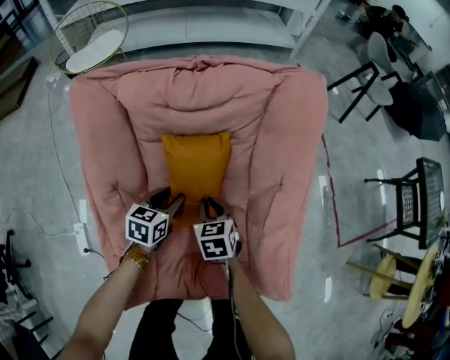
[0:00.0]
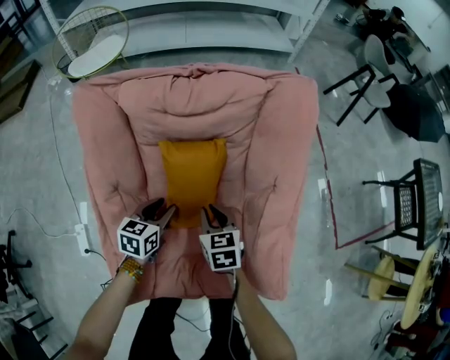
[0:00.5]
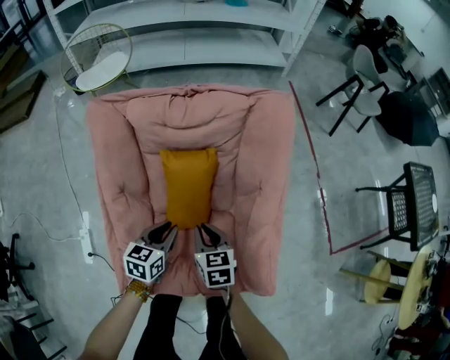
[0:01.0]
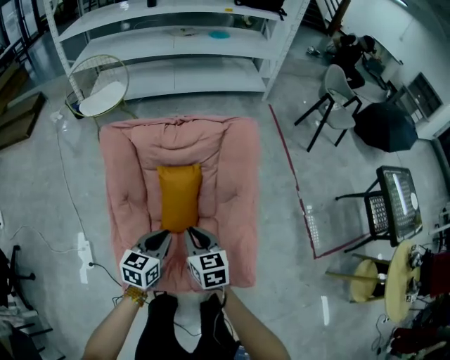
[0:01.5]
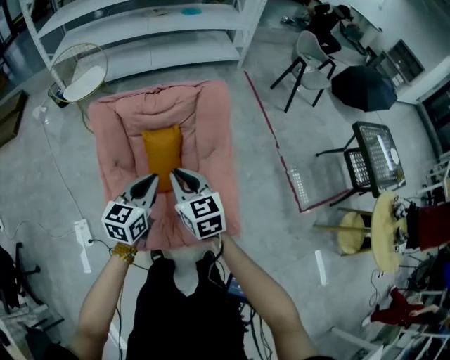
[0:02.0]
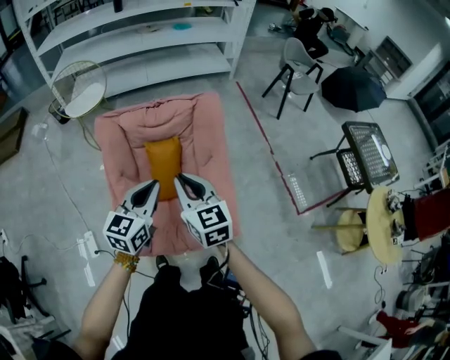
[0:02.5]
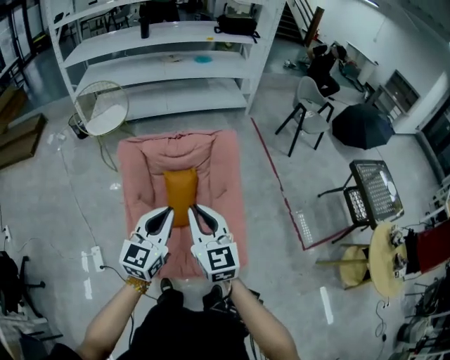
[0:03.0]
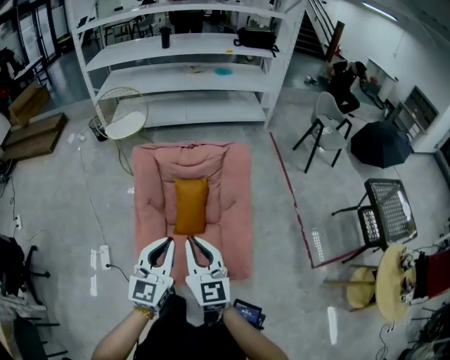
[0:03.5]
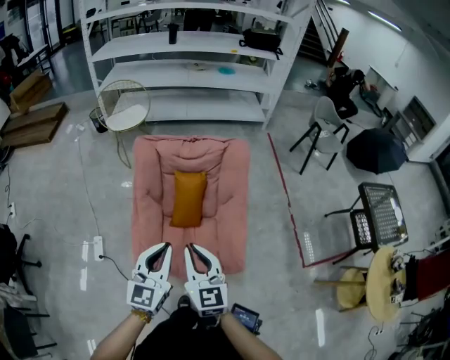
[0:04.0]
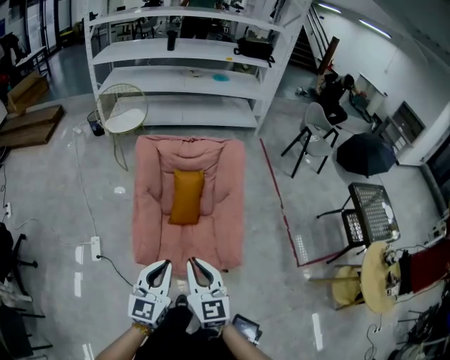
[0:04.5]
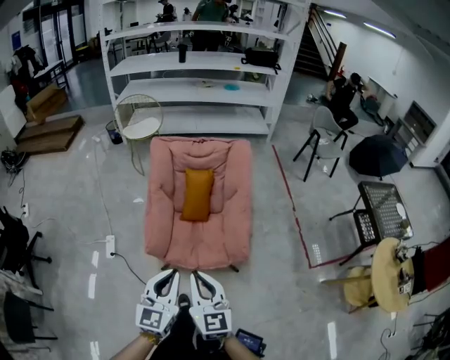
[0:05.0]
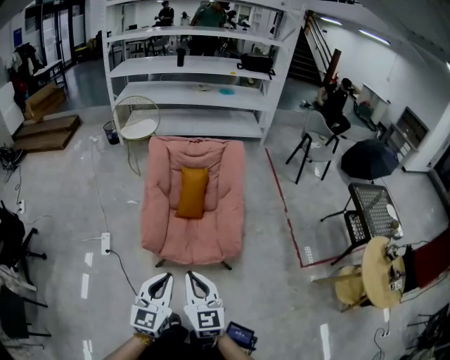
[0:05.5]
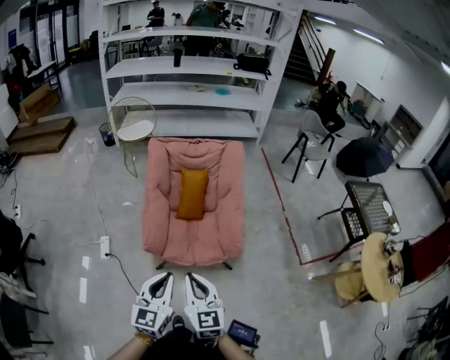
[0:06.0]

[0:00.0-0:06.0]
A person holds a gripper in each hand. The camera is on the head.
0:00.0 to 0:02.0: The right gripper is displaced upward by approximately 40 cm, and swivels roughly 30 degrees. The left gripper travels upward and backward by approximately 50 cm, rotates some 20 degrees, and closes its fingers.
0:02.0 to 0:04.0: Both grippers move backward and upward, approximately 25 cm. The left gripper changes its angle by about 20 degrees.
0:04.0 to 0:06.0: The grippers both shift backward by some 30 cm.

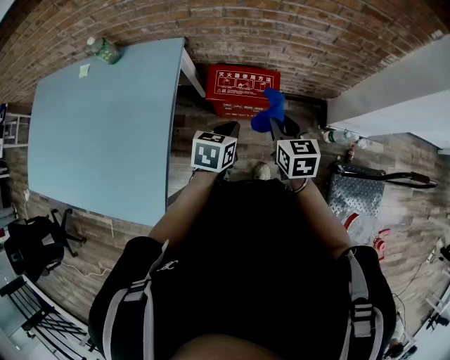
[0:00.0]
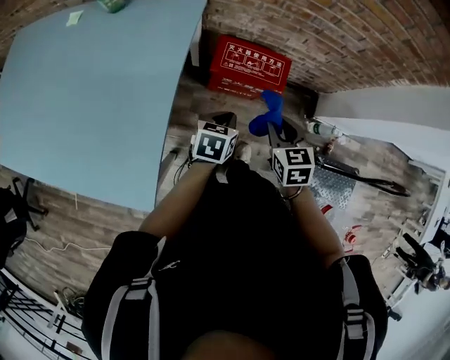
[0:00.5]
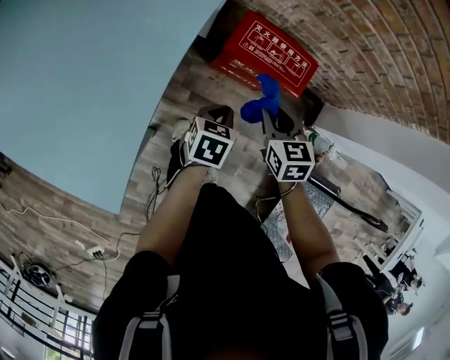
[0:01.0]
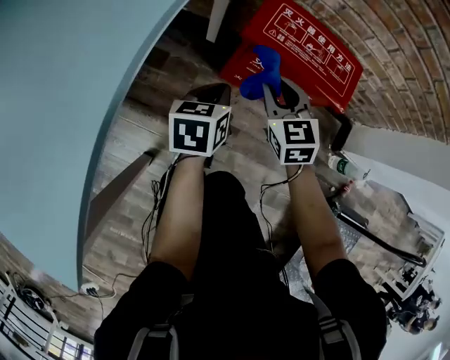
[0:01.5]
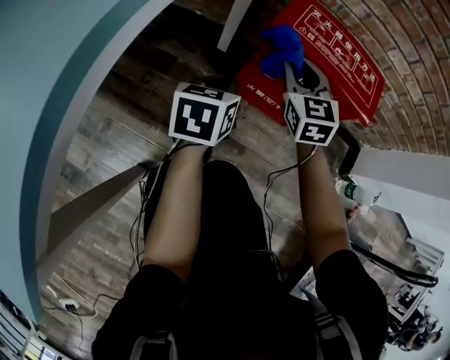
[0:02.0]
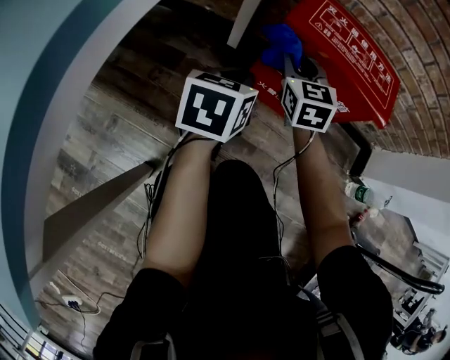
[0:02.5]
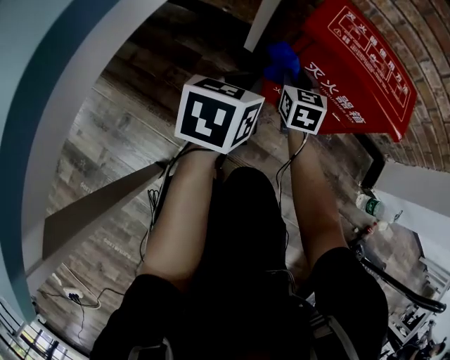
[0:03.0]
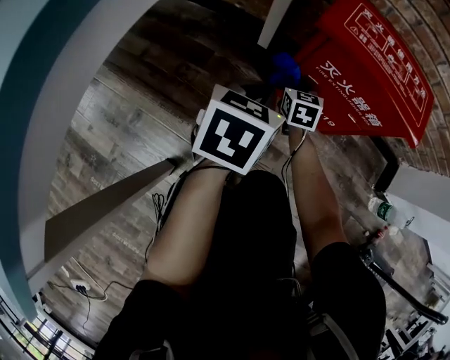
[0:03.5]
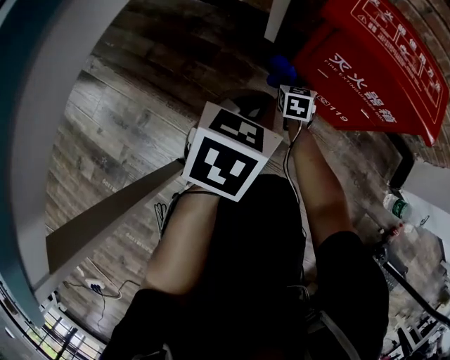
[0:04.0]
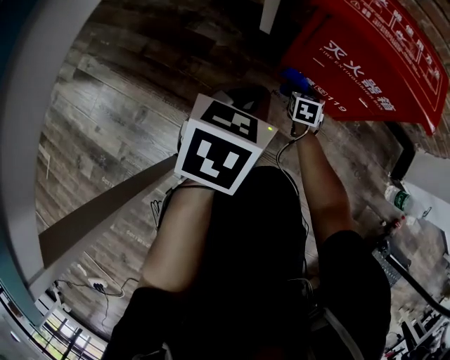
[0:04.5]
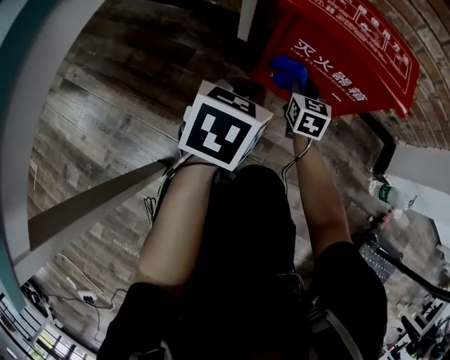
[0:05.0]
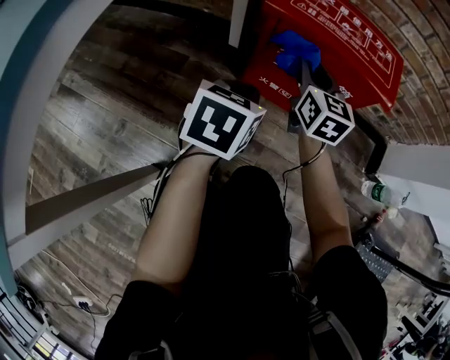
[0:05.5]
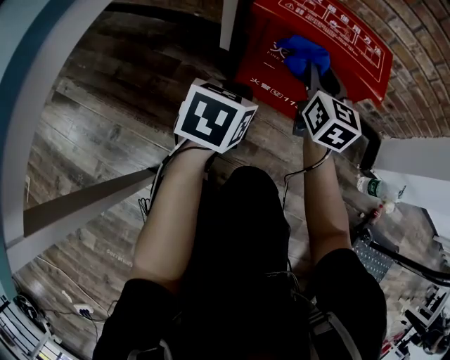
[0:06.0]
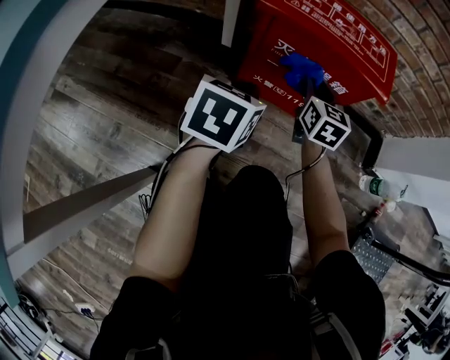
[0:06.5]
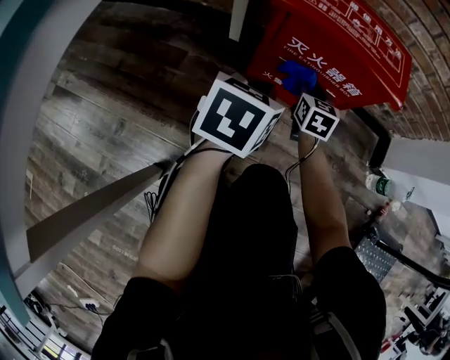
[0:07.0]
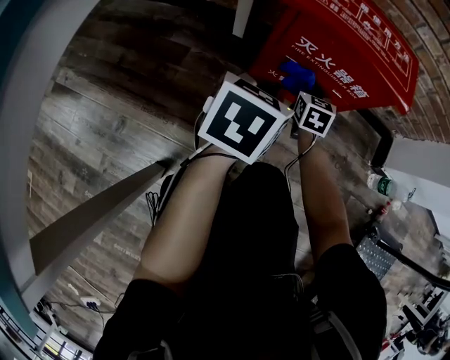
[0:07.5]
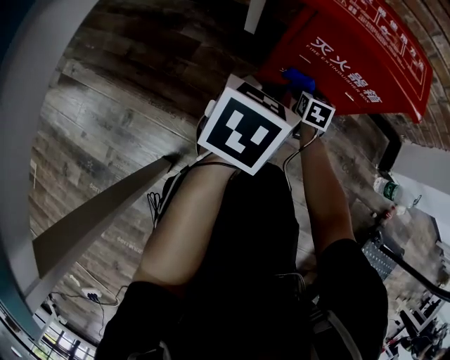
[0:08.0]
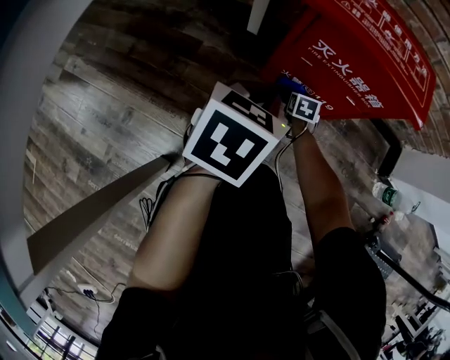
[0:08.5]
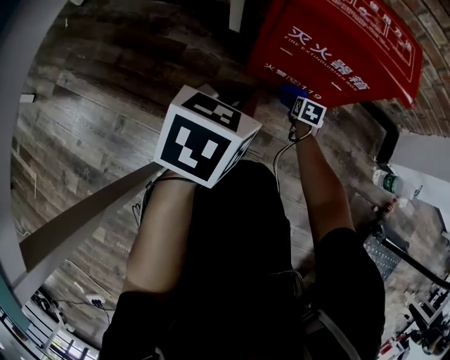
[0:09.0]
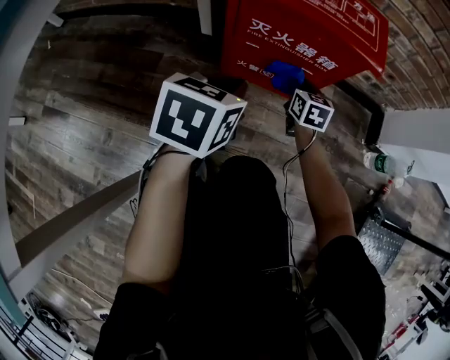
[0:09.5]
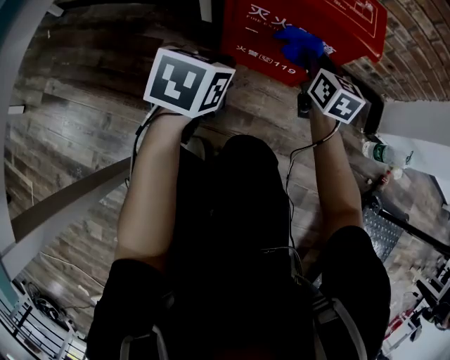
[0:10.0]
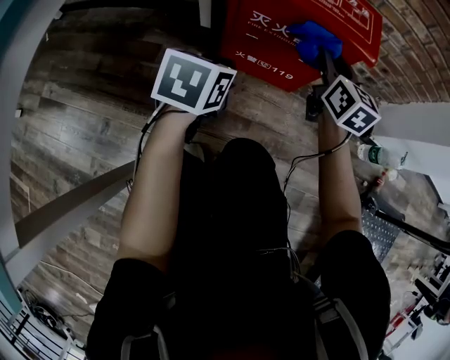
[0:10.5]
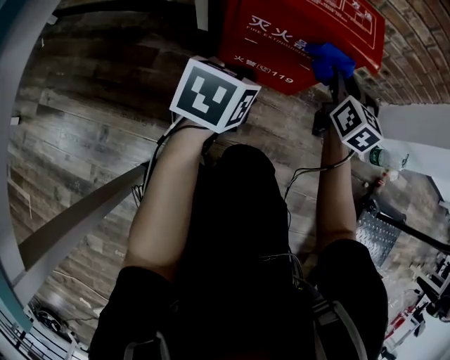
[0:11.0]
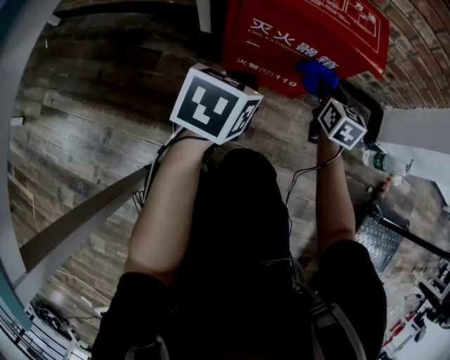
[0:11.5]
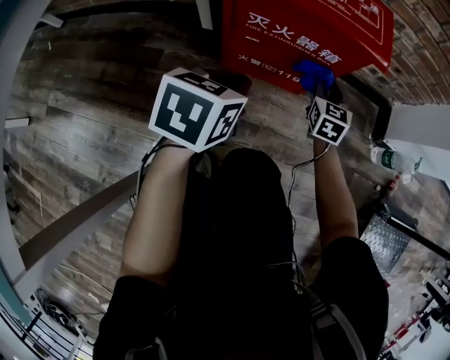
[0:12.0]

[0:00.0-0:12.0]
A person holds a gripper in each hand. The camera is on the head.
0:00.0 to 0:02.0: The grippers both shift downward and to the left by approximately 50 cm. The right gripper swivels some 30 degrees. The left gripper swivels some 20 degrees.
0:02.0 to 0:04.0: The right gripper is displaced downward by approximately 30 cm, and swivels about 30 degrees.
0:04.0 to 0:06.0: The left gripper goes approximately 5 cm to the right. The right gripper moves upward and to the right, some 30 cm, and rotates some 30 degrees.
0:06.0 to 0:08.0: The right gripper shifts approximately 30 cm downward, and tips its fingers downward by some 30 degrees.
0:08.0 to 0:10.0: The right gripper travels upward and to the right by approximately 20 cm, and rotates some 30 degrees.
0:10.0 to 0:12.0: The right gripper is displaced downward and to the right by approximately 10 cm, and rotates some 20 degrees.

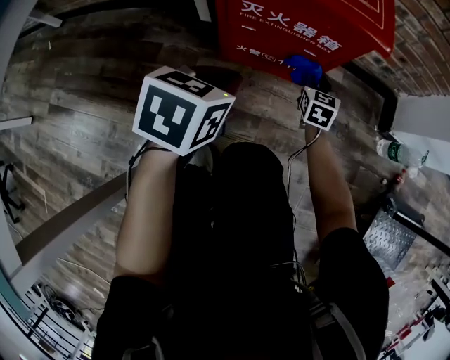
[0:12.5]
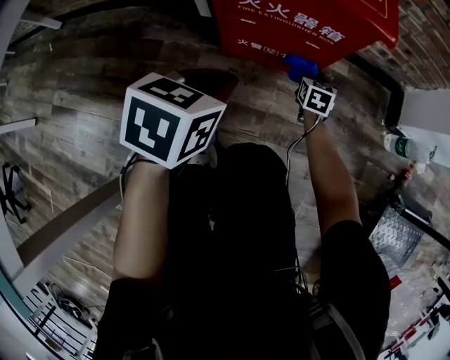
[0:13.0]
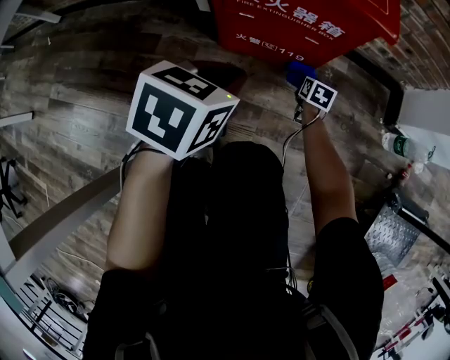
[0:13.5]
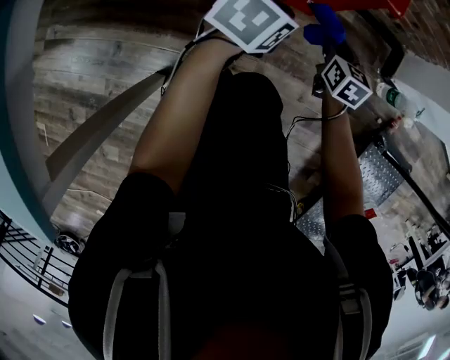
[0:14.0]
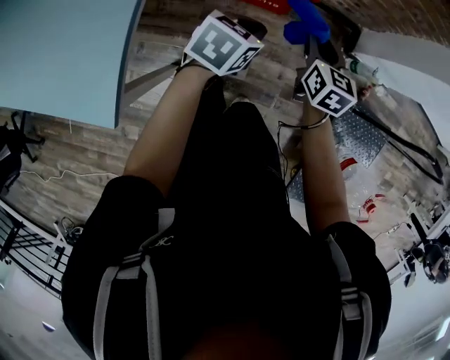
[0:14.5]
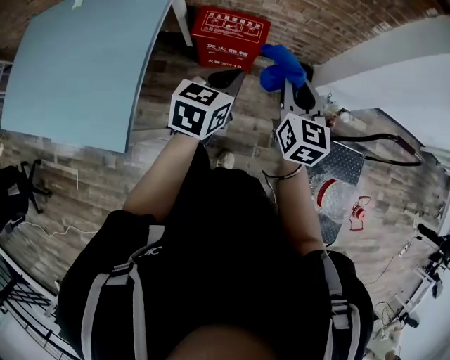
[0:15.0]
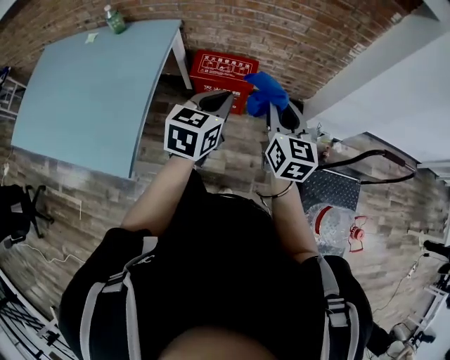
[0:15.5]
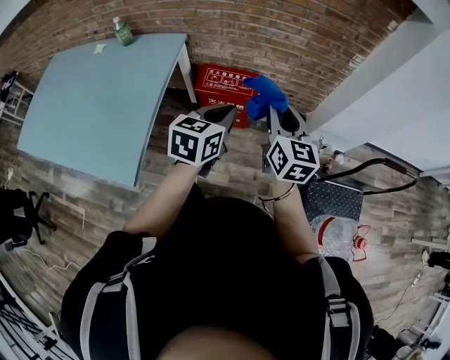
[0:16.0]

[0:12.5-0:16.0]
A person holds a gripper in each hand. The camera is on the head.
0:12.5 to 0:14.5: The right gripper is displaced upward by approximately 50 cm, while the left gripper shifts approximately 35 cm upward.
0:14.5 to 0:16.0: The grippers both shift upward by roughly 30 cm. The left gripper rotates approximately 20 degrees. Meanwhile the right gripper swivels some 20 degrees.

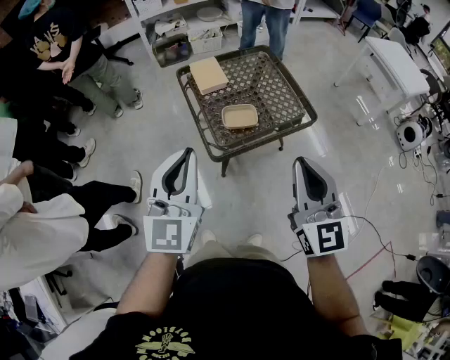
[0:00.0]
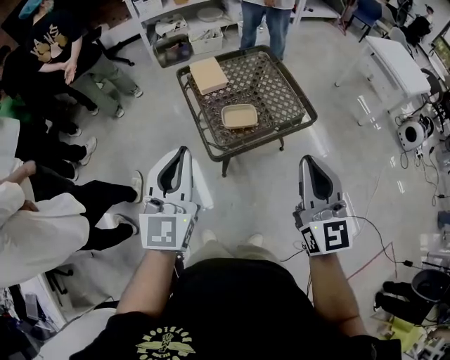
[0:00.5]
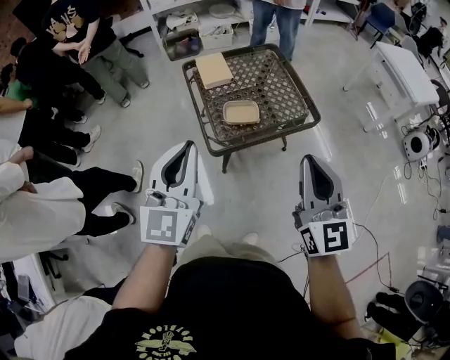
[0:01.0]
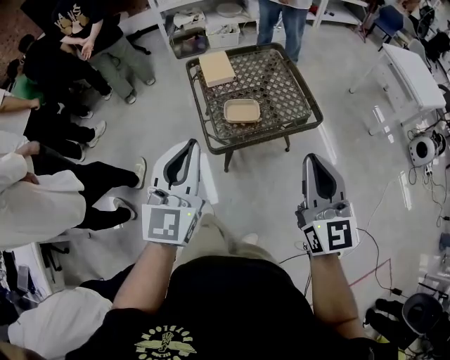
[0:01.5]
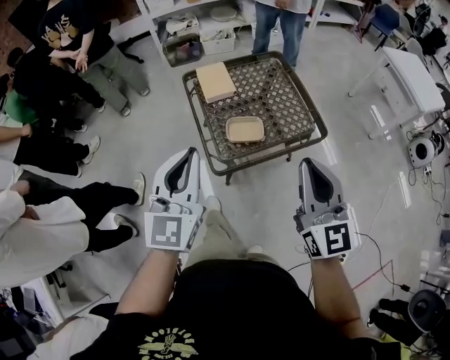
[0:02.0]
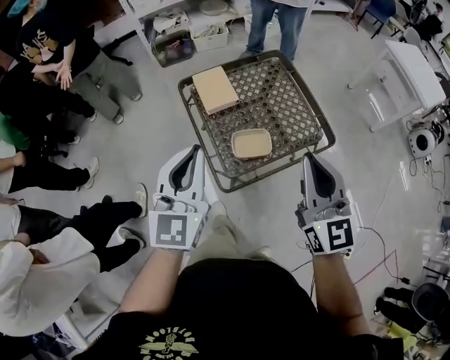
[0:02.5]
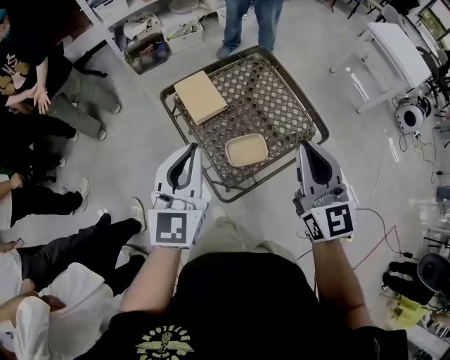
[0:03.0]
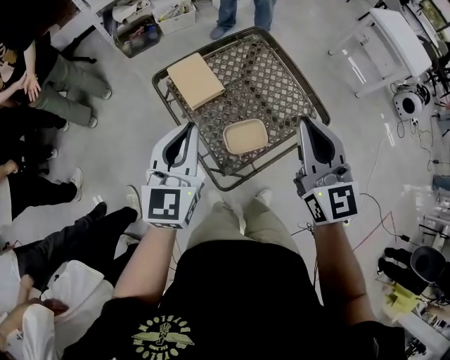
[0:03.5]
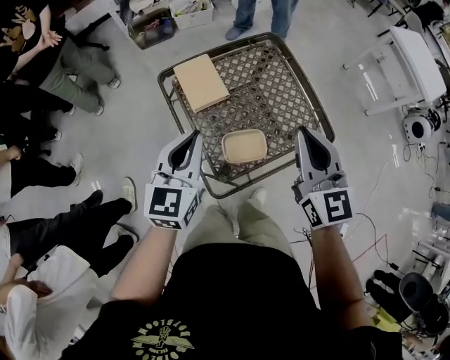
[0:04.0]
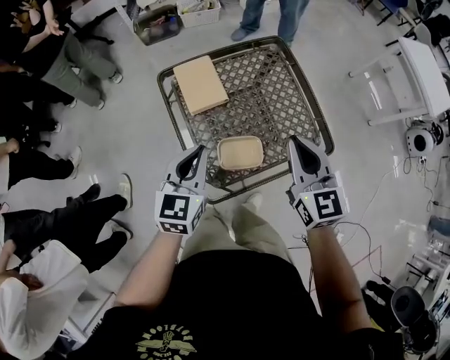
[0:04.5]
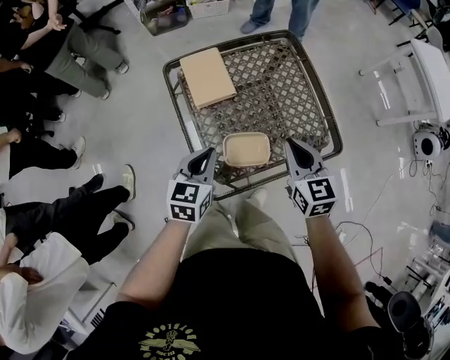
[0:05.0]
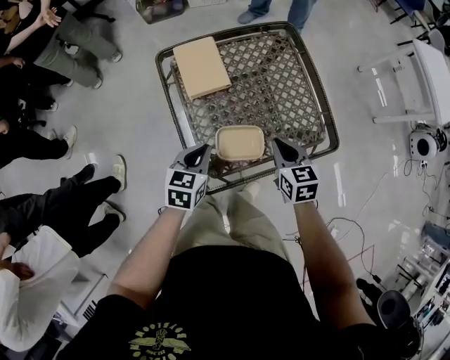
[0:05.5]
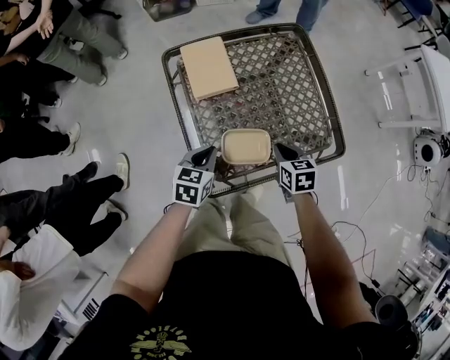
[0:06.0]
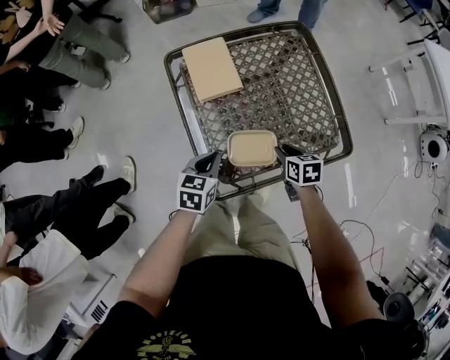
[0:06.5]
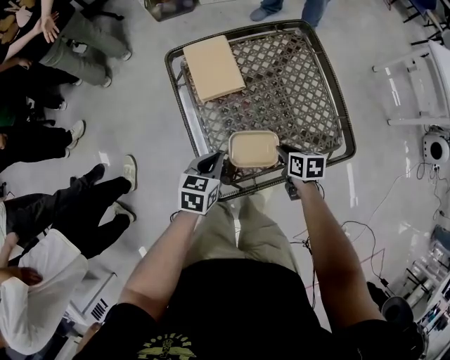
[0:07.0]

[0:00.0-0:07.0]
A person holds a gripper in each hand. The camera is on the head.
0:00.0 to 0:02.0: Both grippers travel together forward, approximately 10 cm.
0:02.0 to 0:03.5: The two grippers go some 20 cm forward.
0:03.5 to 0:05.0: Both grippers move downward, some 20 cm. The left gripper changes its angle by about 30 degrees; the right gripper swivels roughly 30 degrees.
0:05.0 to 0:07.0: The right gripper goes some 25 cm downward, and changes its angle by some 40 degrees. Meanwhile the left gripper travels downward by some 10 cm.
